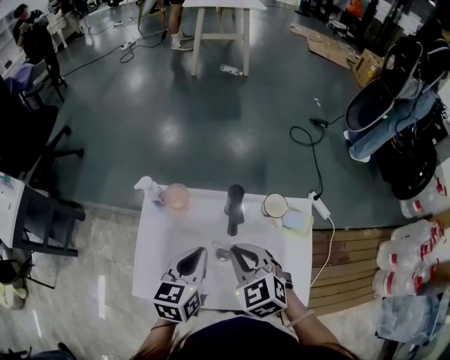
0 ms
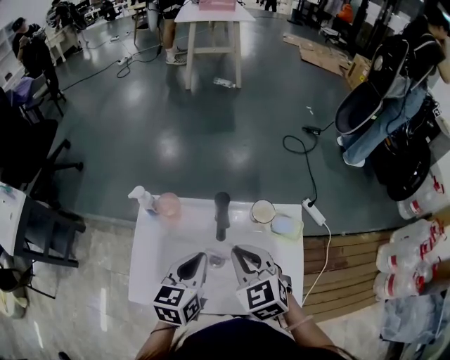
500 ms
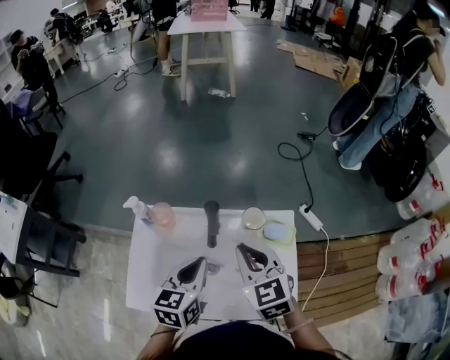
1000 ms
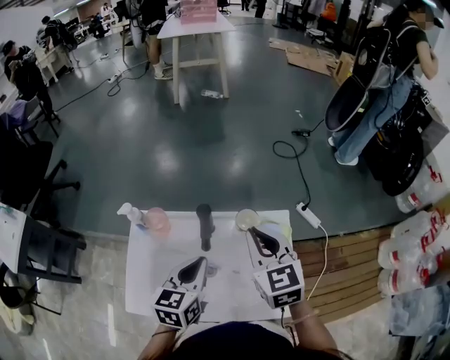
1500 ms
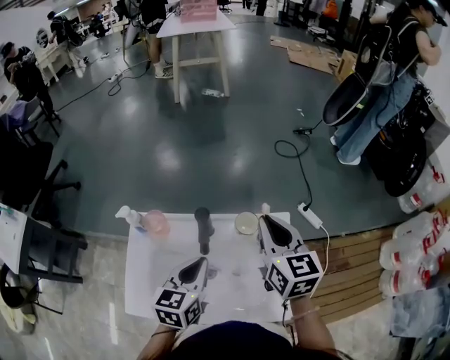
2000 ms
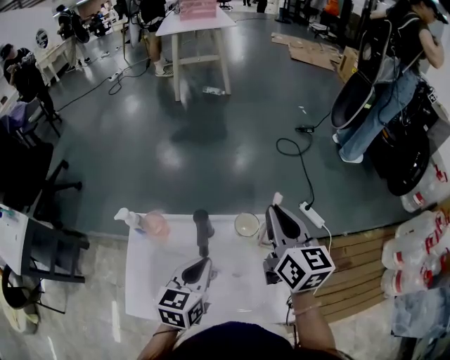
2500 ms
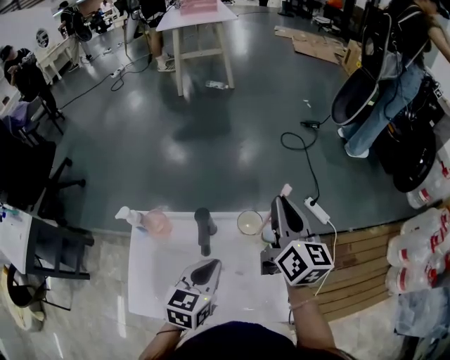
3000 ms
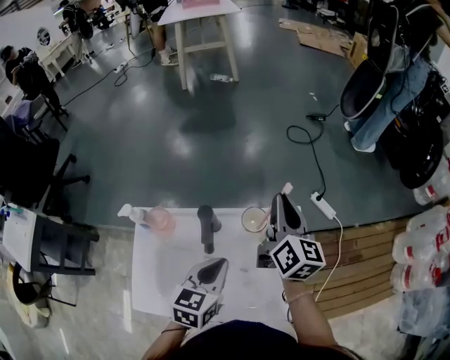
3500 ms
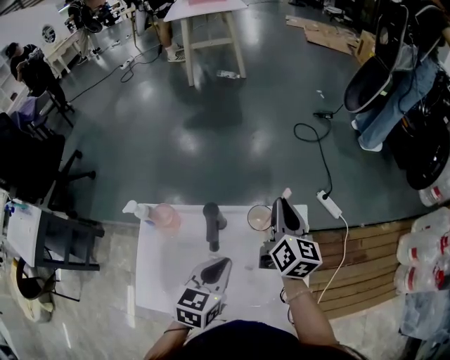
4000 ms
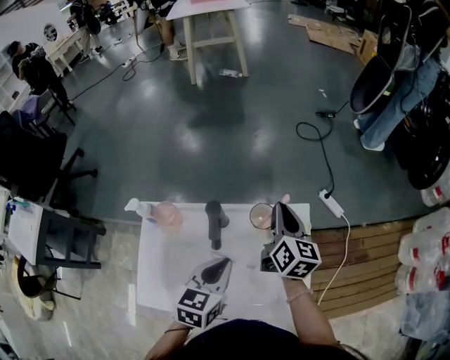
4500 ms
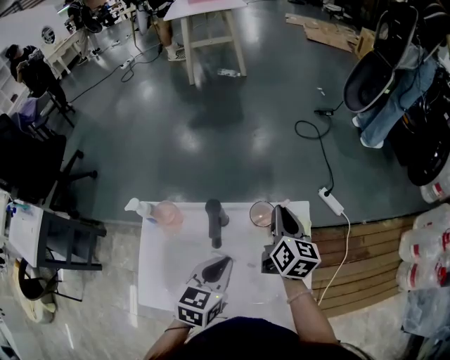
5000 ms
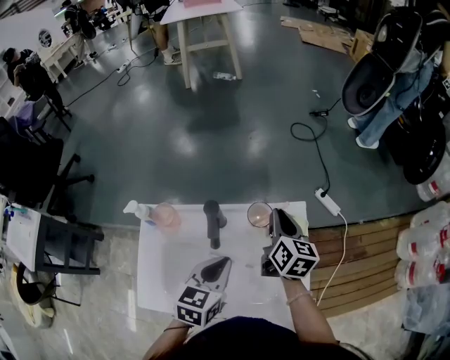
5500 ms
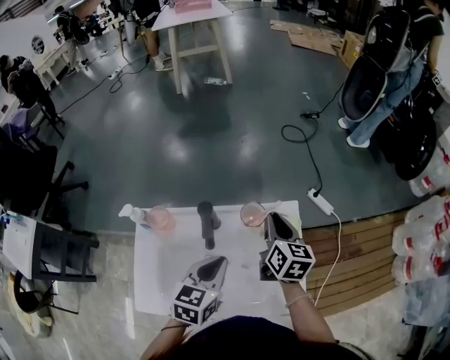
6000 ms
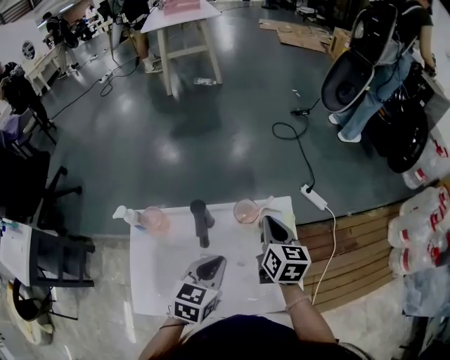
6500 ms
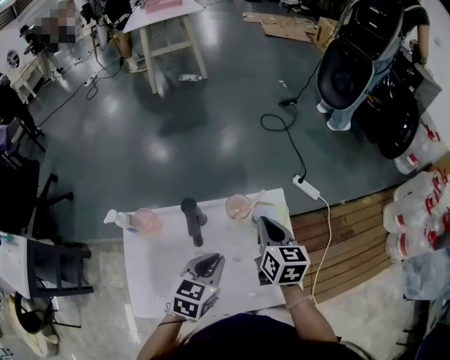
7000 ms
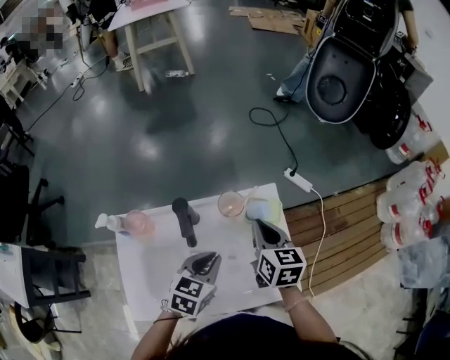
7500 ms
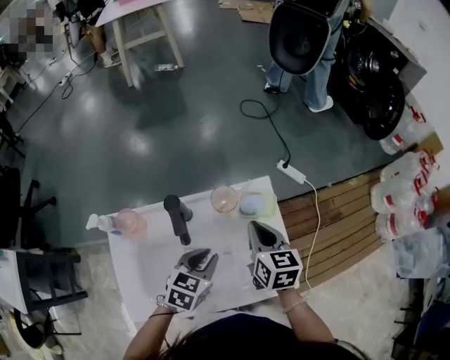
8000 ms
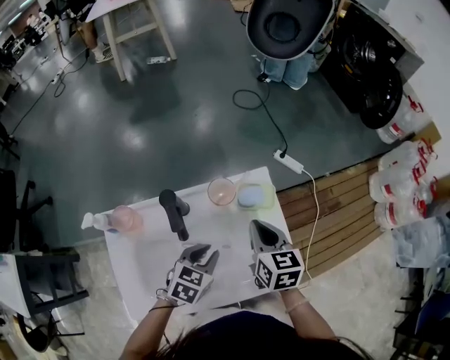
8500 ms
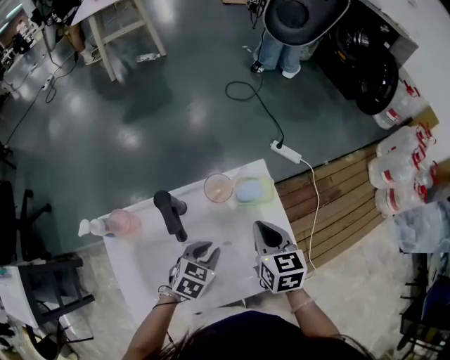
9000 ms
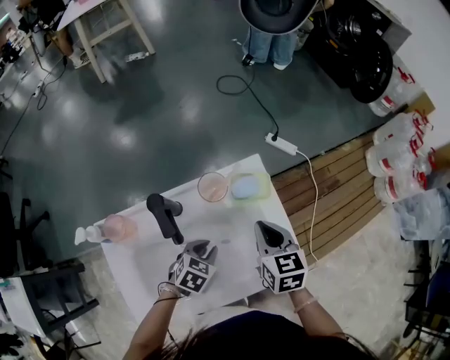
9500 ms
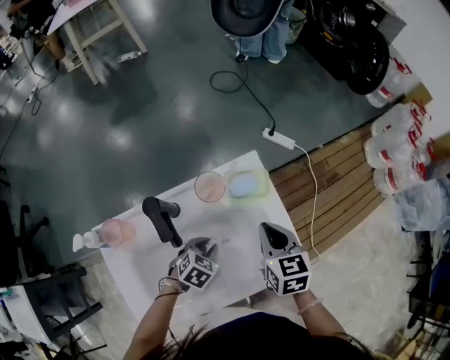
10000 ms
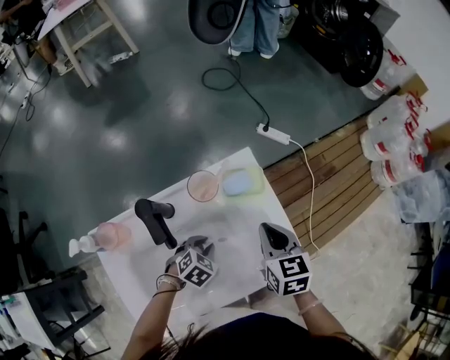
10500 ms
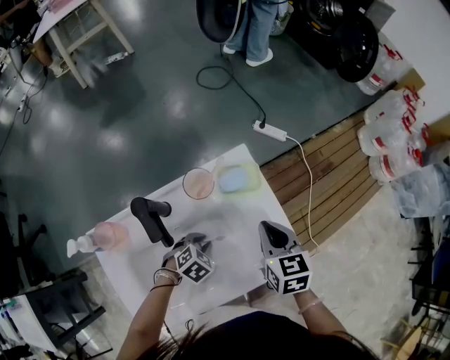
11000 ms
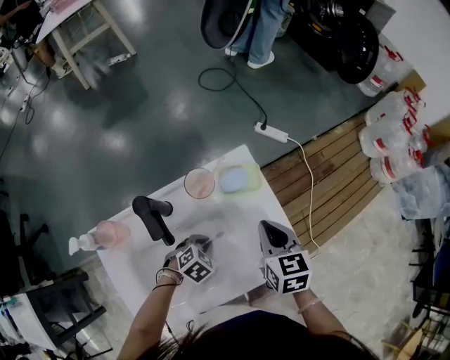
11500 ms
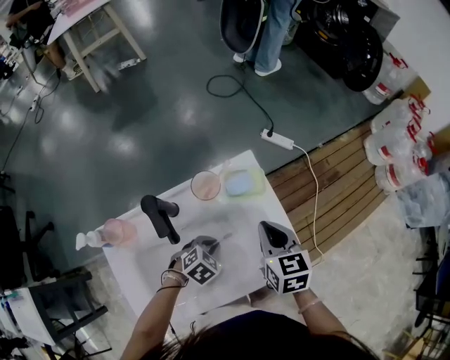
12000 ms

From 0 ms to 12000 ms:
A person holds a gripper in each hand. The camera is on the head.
From 0 ms to 2000 ms: The right gripper goes some 20 cm to the right, upward and forward, and swivels approximately 50 degrees; the left gripper heads to the right, covering roughly 10 cm.
From 2000 ms to 4000 ms: The right gripper goes roughly 10 cm downward and forward, and changes its angle by approximately 20 degrees.
From 4000 ms to 6000 ms: The right gripper moves some 5 cm.
From 6000 ms to 8000 ms: The left gripper travels downward by about 10 cm, and rotates approximately 20 degrees. Meanwhile the right gripper moves backward, about 5 cm.
From 8000 ms to 10000 ms: The left gripper is displaced downward by roughly 15 cm, and swivels about 30 degrees, while the right gripper goes some 5 cm to the right.
From 10000 ms to 12000 ms: The grippers make only small movements.

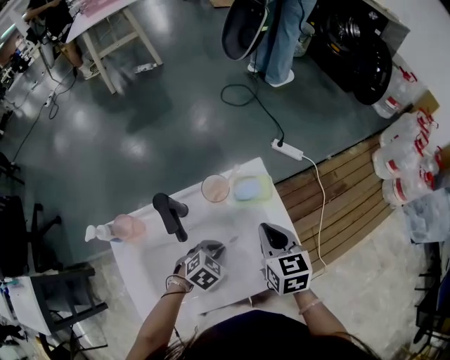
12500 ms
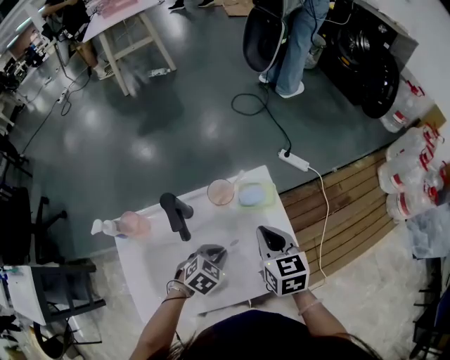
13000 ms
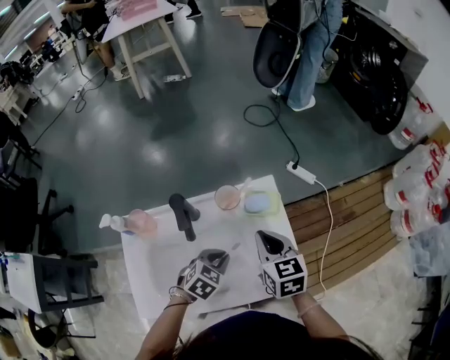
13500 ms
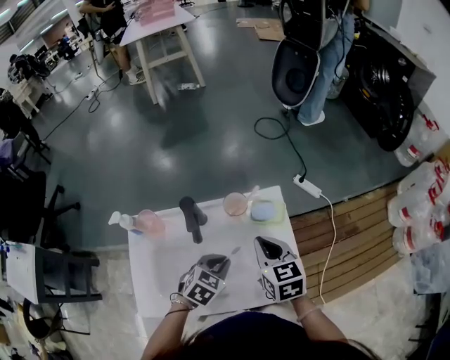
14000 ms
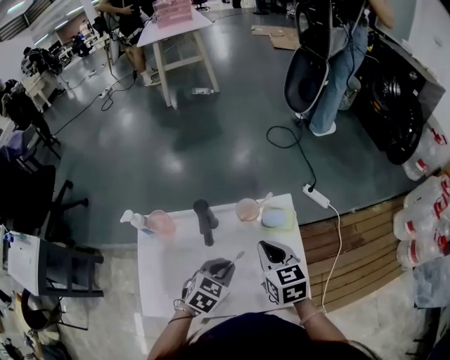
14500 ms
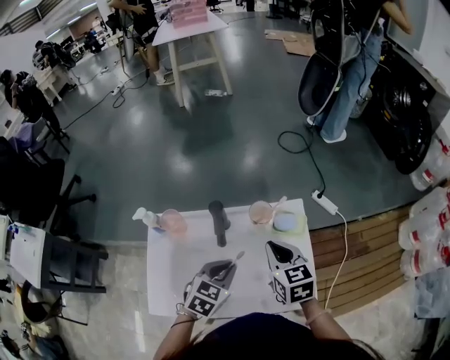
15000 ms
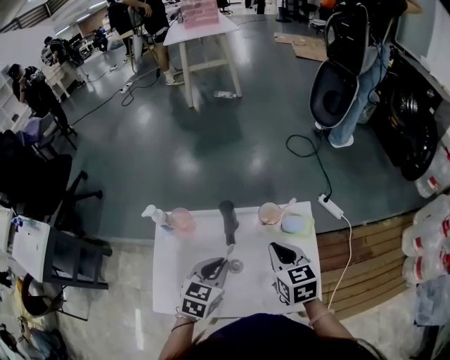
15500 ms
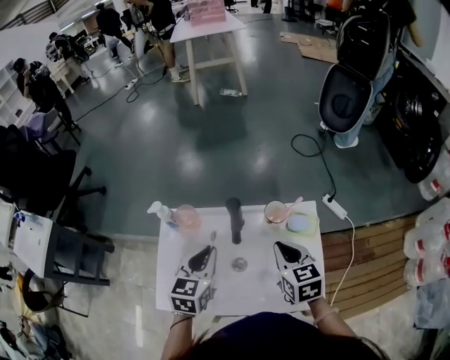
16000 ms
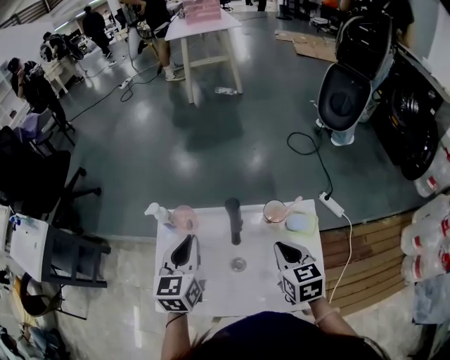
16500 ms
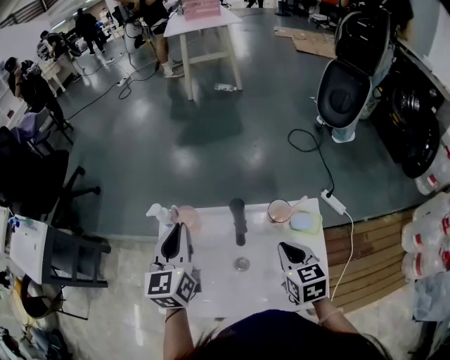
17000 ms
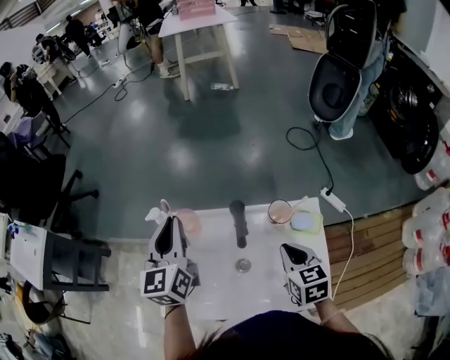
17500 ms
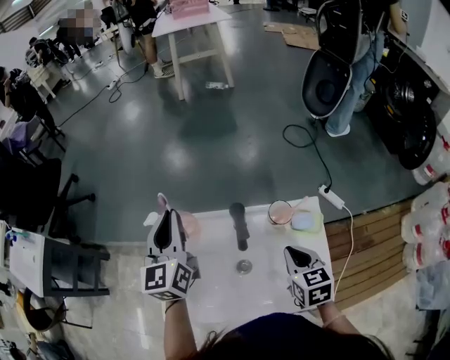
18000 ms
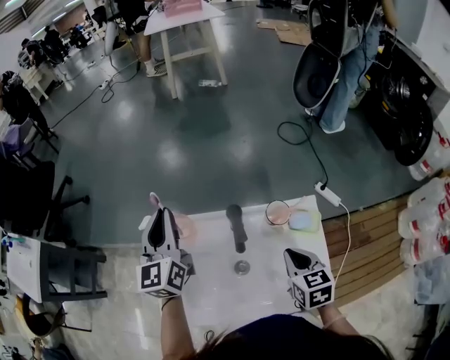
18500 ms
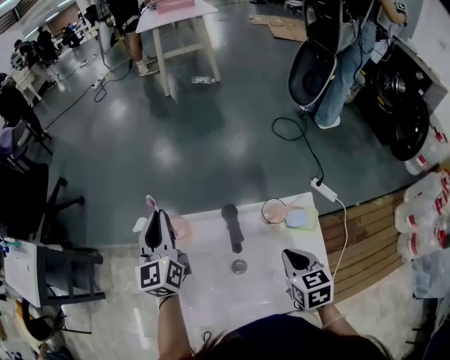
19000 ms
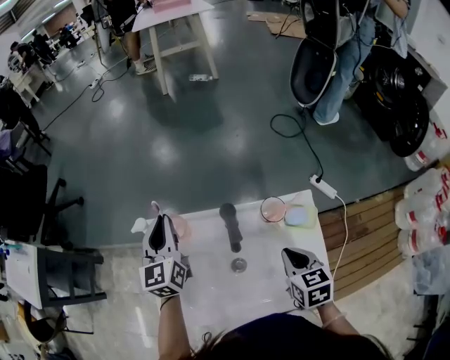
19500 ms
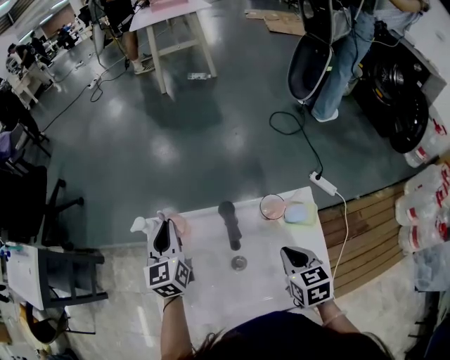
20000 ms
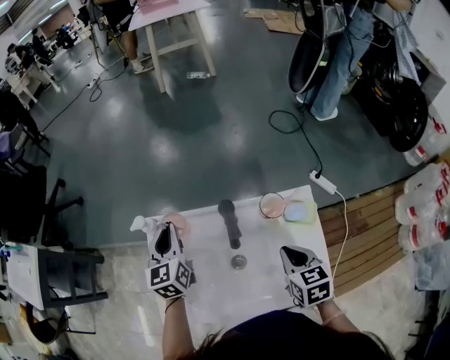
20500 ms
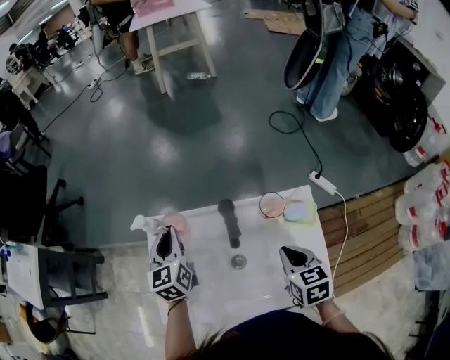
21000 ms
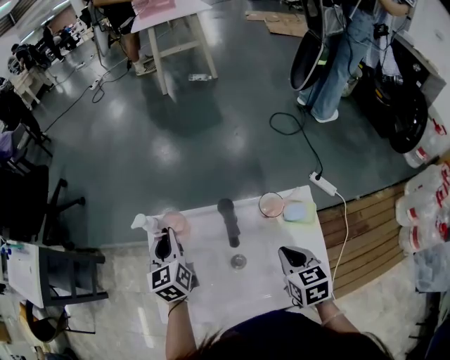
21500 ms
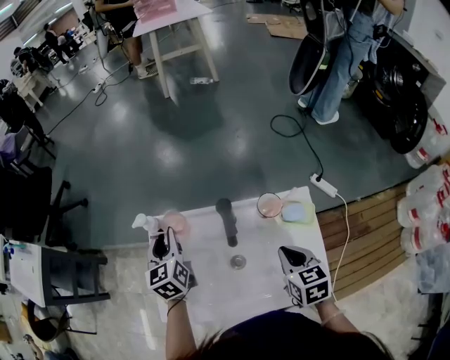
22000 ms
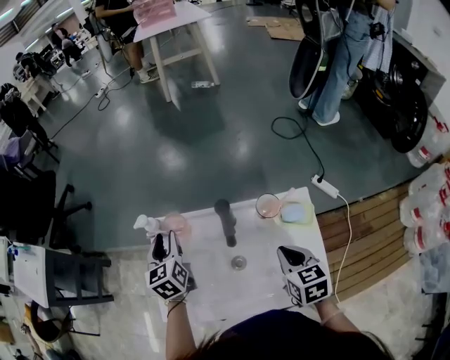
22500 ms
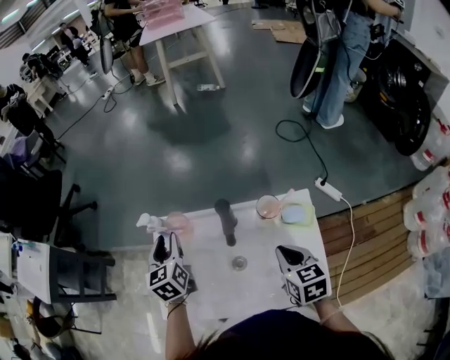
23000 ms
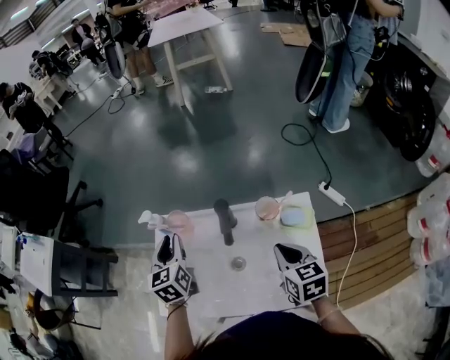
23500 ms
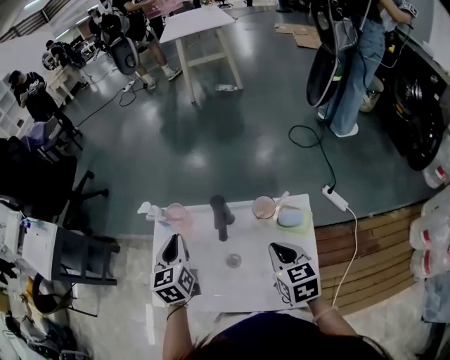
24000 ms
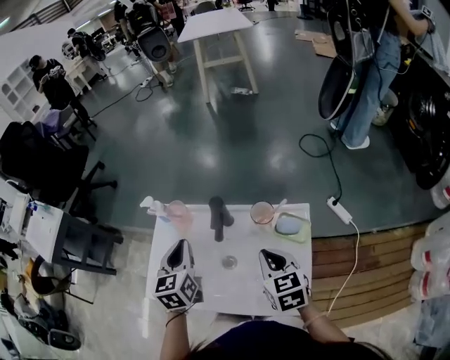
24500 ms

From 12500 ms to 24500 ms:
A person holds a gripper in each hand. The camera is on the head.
From 12500 ms to 14500 ms: The left gripper travels upward by about 10 cm, and swivels roughly 30 degrees. Meanwhile the right gripper is displaced to the left by roughly 5 cm.
From 14500 ms to 16500 ms: The left gripper travels to the left and upward by some 25 cm, and rotates approximately 50 degrees.
From 16500 ms to 18500 ms: The left gripper is displaced forward and upward by roughly 10 cm.
From 18500 ms to 20500 ms: The left gripper is displaced downward by some 10 cm.
From 20500 ms to 22500 ms: The left gripper opens up.
From 22500 ms to 24500 ms: The left gripper moves backward and to the right, some 15 cm, and closes up.

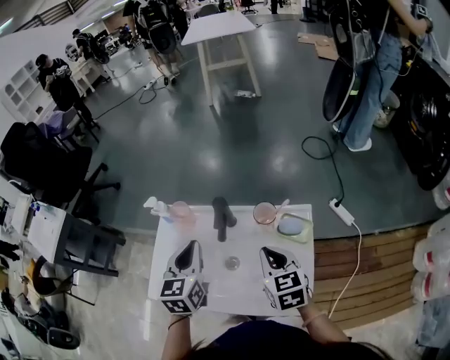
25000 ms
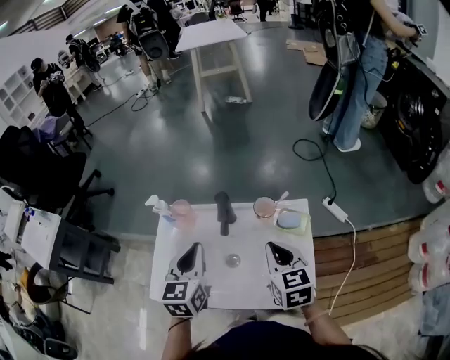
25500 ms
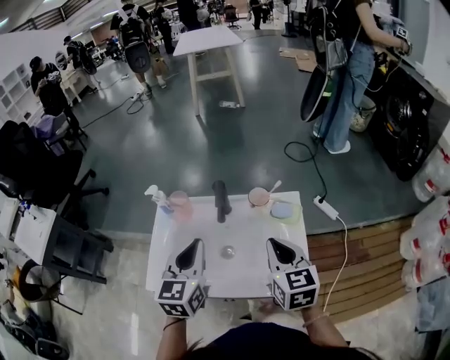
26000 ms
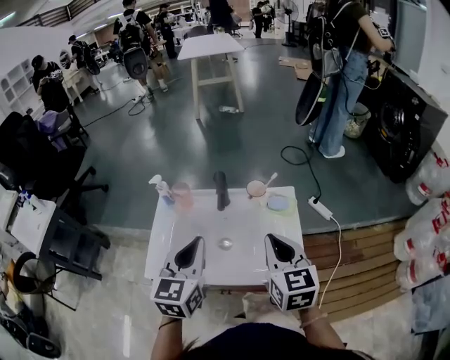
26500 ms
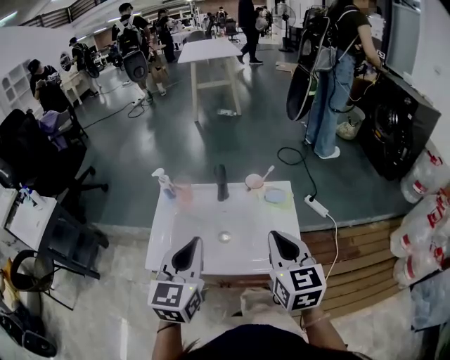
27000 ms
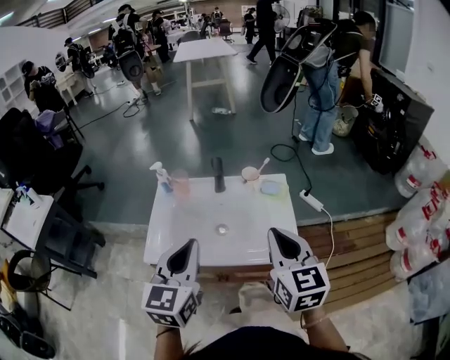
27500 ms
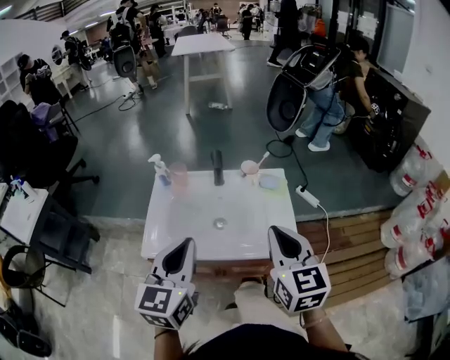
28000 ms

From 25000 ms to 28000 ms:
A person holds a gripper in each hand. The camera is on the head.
From 25000 ms to 26500 ms: The grippers both shift backward and upward by some 15 cm.
From 26500 ms to 28000 ms: The two grippers go roughly 10 cm backward.
